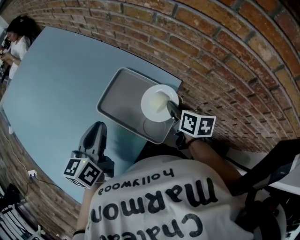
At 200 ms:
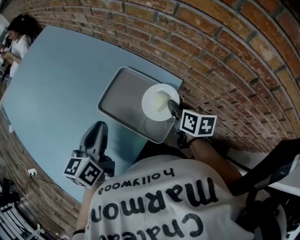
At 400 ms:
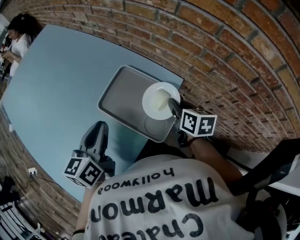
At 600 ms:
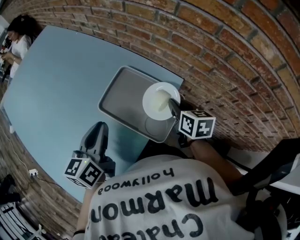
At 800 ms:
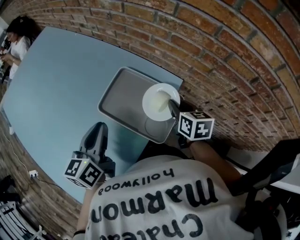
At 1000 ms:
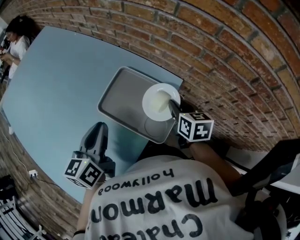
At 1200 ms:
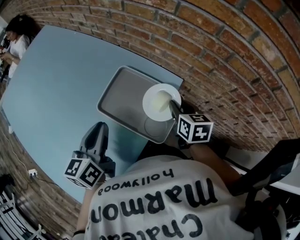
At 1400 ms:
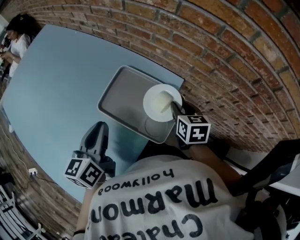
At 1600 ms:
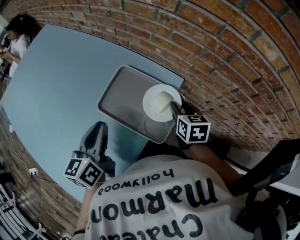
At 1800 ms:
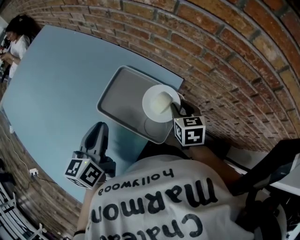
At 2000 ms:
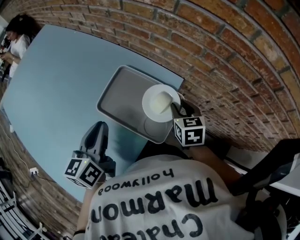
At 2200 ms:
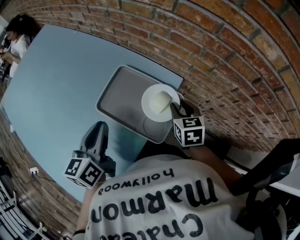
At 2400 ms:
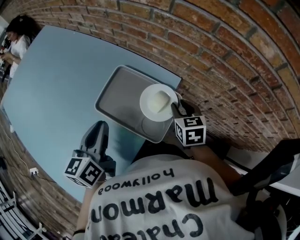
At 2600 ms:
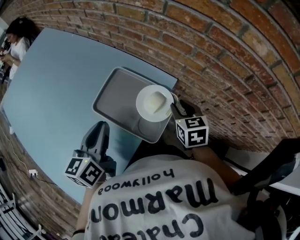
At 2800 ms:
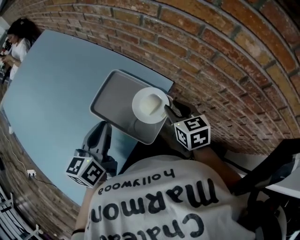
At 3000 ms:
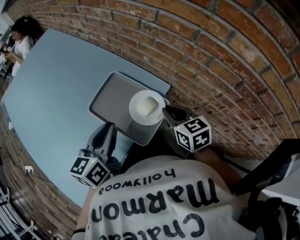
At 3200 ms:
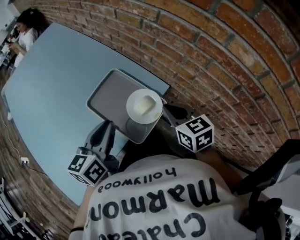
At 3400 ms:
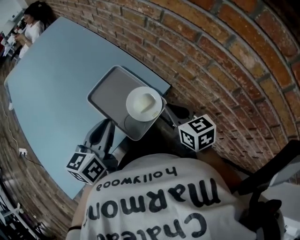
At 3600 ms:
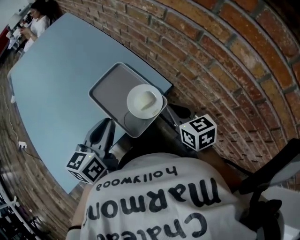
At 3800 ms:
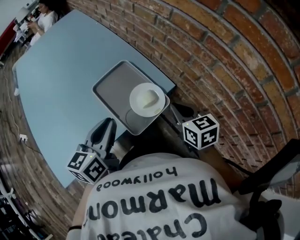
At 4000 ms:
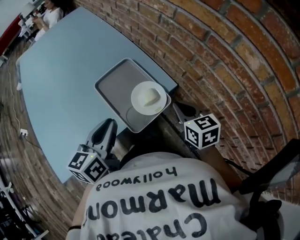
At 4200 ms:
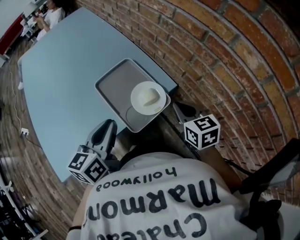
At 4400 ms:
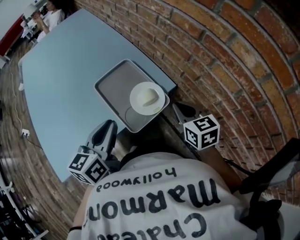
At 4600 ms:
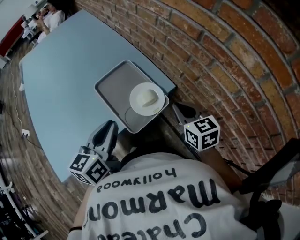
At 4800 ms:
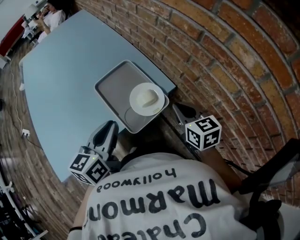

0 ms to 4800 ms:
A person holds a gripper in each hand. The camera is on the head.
0 ms to 1600 ms: There are only small adjustments of the grippers.
1600 ms to 3200 ms: The right gripper moves upward, about 10 cm, changes its angle by approximately 30 degrees, and closes its fingers. Meanwhile the left gripper shifts about 10 cm to the right.
3200 ms to 4800 ms: The left gripper travels backward by roughly 5 cm.

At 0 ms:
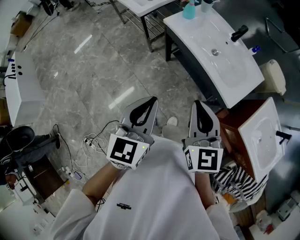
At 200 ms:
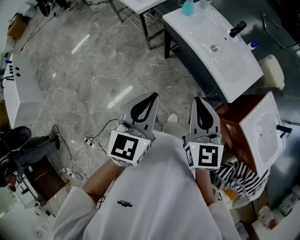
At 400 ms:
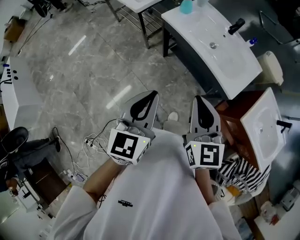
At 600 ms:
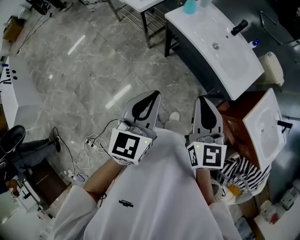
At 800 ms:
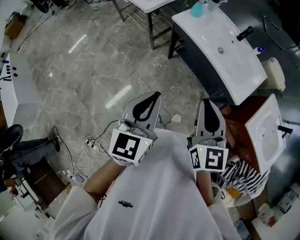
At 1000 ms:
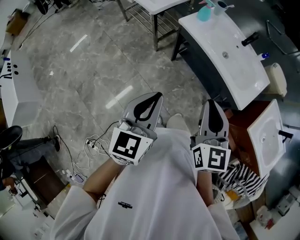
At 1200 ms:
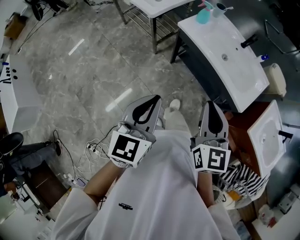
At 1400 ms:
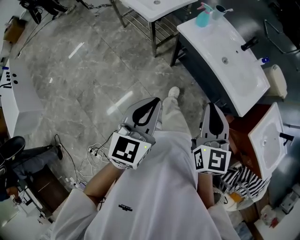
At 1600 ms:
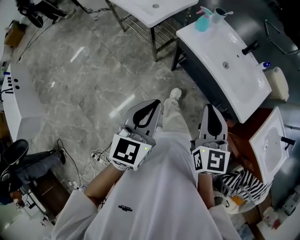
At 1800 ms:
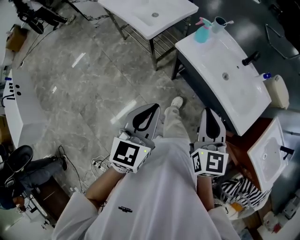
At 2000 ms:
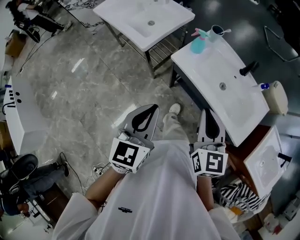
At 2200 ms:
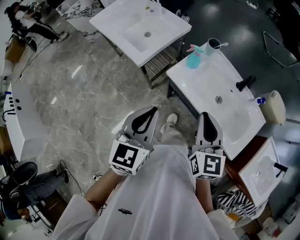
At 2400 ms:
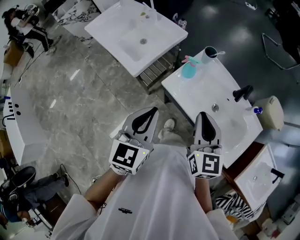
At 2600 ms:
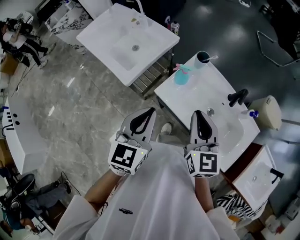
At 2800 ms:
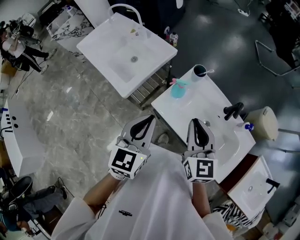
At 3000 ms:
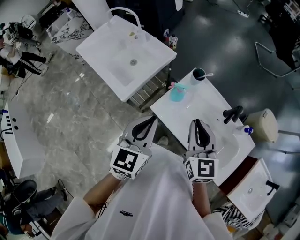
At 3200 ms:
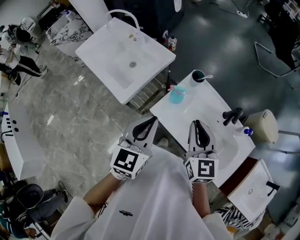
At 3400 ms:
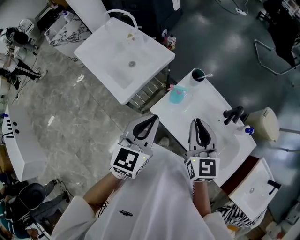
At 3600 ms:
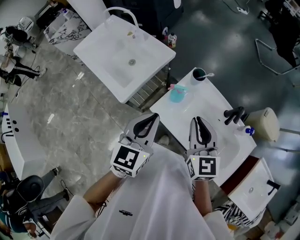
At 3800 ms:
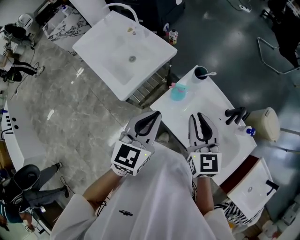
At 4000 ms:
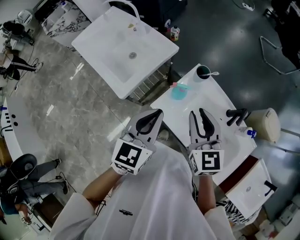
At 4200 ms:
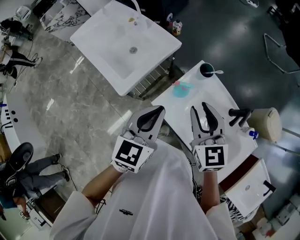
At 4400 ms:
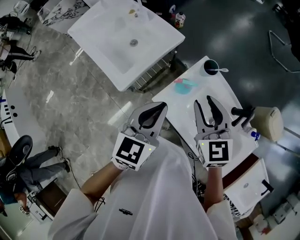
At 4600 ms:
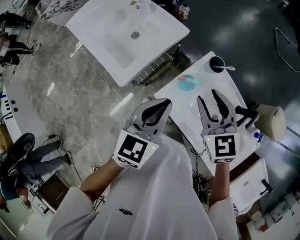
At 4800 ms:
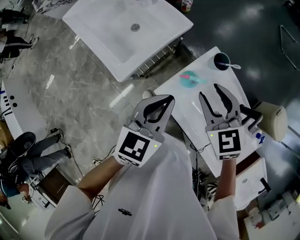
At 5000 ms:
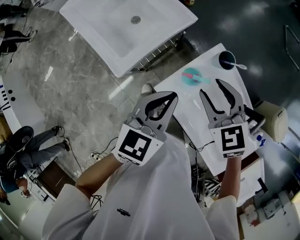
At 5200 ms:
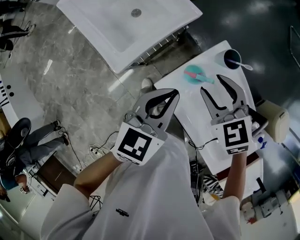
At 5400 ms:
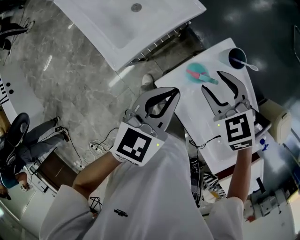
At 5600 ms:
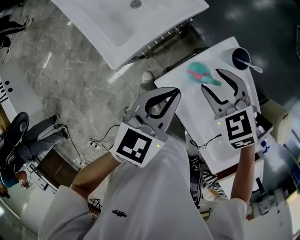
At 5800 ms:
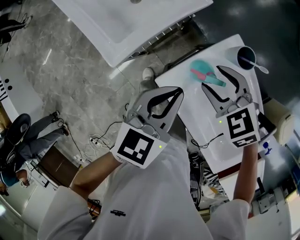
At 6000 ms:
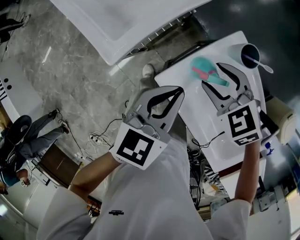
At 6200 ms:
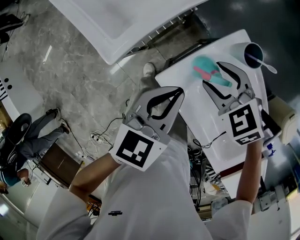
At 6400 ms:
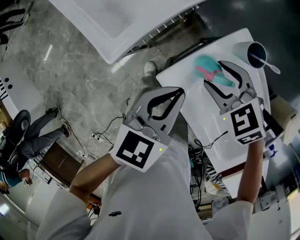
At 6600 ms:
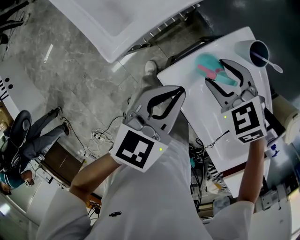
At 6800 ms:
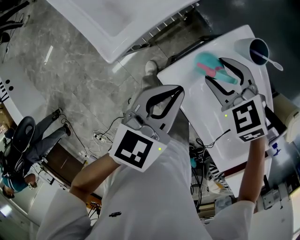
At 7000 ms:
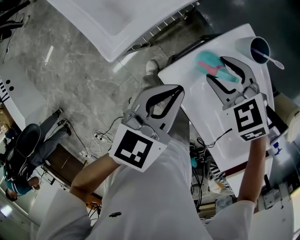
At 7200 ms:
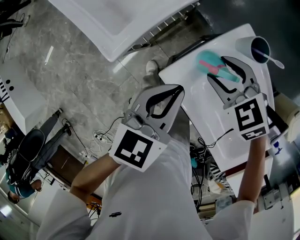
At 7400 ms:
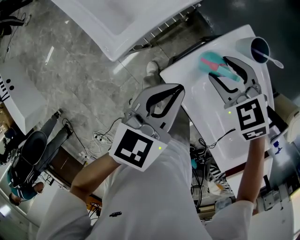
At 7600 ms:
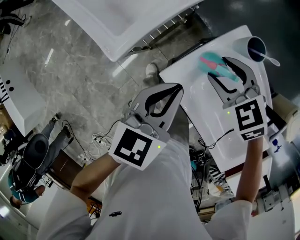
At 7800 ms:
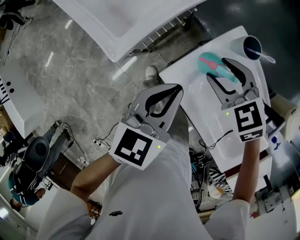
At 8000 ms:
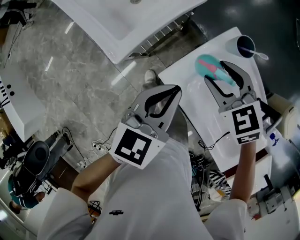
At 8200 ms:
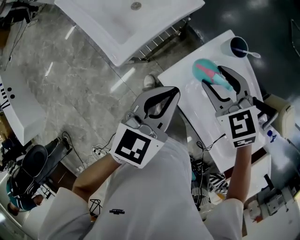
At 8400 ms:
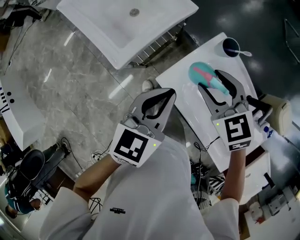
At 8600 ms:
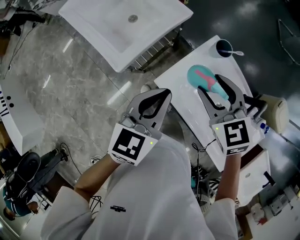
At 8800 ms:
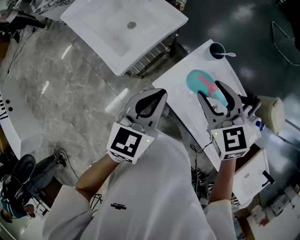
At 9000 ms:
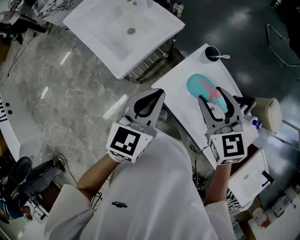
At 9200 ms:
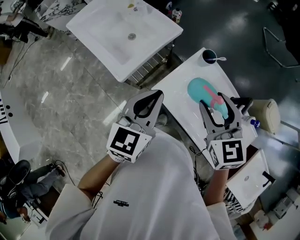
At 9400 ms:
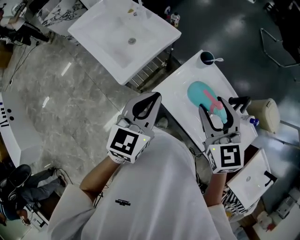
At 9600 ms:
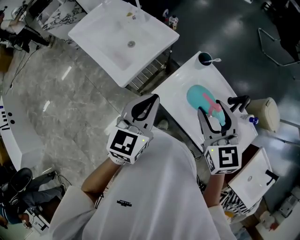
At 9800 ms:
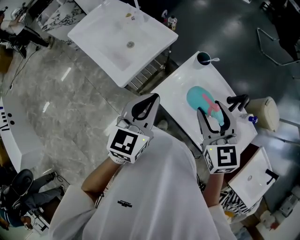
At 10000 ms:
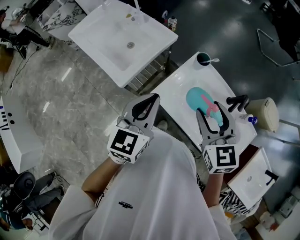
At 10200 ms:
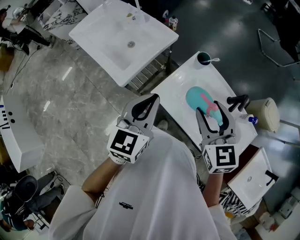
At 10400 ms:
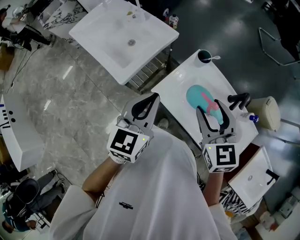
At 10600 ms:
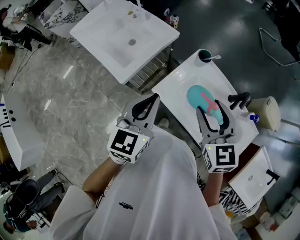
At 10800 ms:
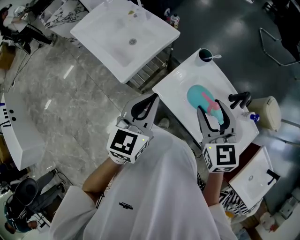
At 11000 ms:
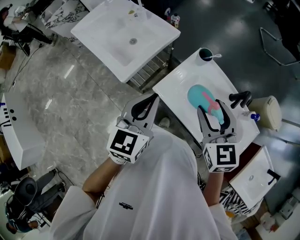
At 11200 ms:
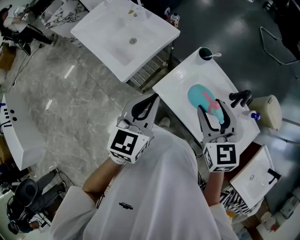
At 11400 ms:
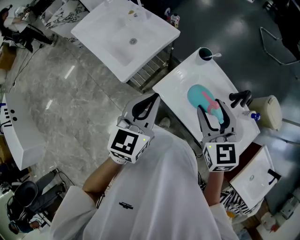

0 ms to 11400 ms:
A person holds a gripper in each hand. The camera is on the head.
0 ms to 1400 ms: The two grippers go some 10 cm to the left.
1400 ms to 2800 ms: Both grippers travel together forward, approximately 40 cm.
2800 ms to 4200 ms: Both grippers move forward, some 10 cm. The right gripper opens.
4200 ms to 5600 ms: The grippers both shift downward and forward by some 15 cm. The right gripper points its fingers roughly 30 degrees further downward, and opens up.
5600 ms to 7200 ms: The right gripper shifts about 5 cm downward, while the left gripper ends up some 5 cm from where it was.
7200 ms to 8600 ms: Both grippers move upward, approximately 15 cm. The right gripper swivels some 30 degrees.
8600 ms to 10000 ms: The right gripper moves backward and upward, about 15 cm, and changes its angle by roughly 20 degrees, while the left gripper travels upward and backward by approximately 10 cm.
10000 ms to 11400 ms: The grippers stay close to where they were, moving slightly.

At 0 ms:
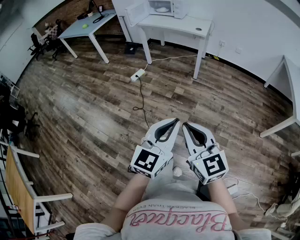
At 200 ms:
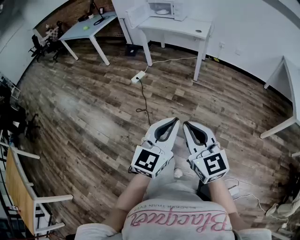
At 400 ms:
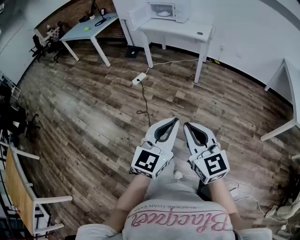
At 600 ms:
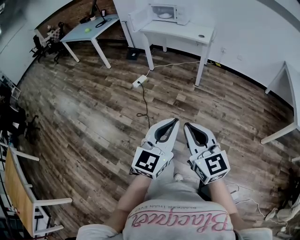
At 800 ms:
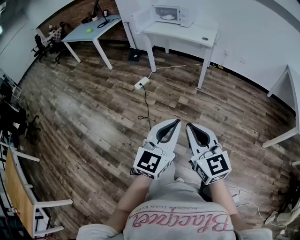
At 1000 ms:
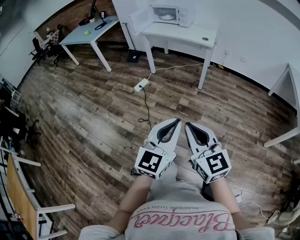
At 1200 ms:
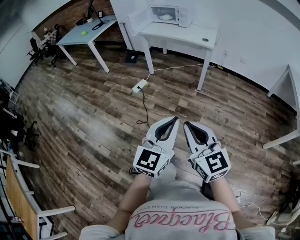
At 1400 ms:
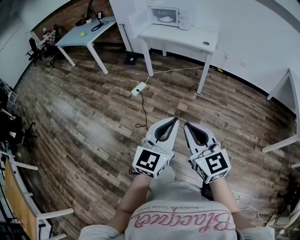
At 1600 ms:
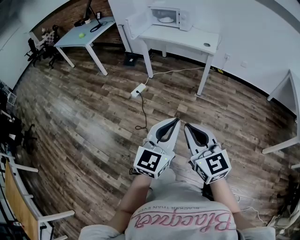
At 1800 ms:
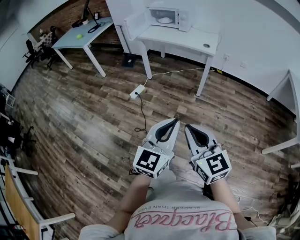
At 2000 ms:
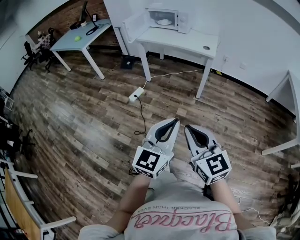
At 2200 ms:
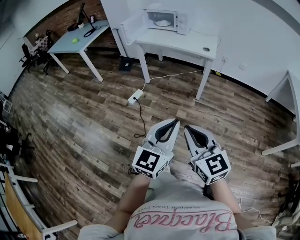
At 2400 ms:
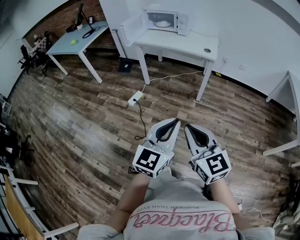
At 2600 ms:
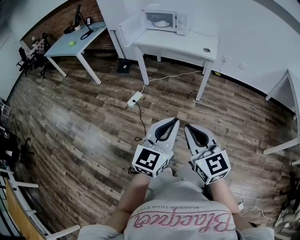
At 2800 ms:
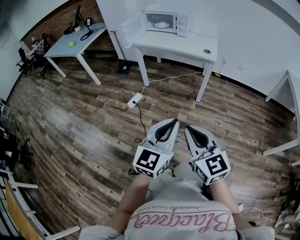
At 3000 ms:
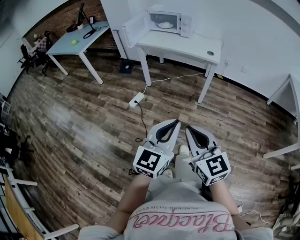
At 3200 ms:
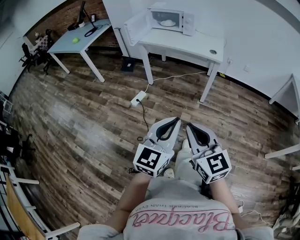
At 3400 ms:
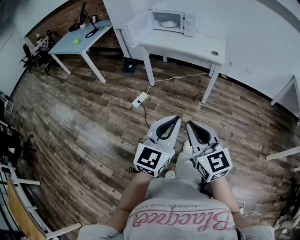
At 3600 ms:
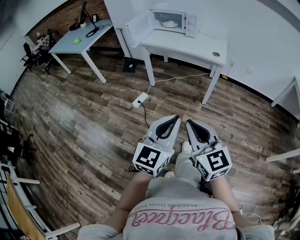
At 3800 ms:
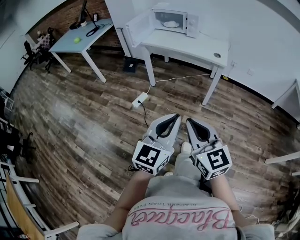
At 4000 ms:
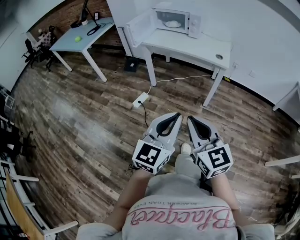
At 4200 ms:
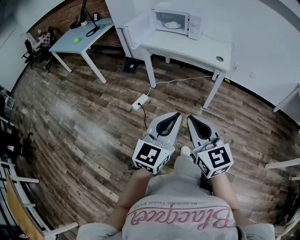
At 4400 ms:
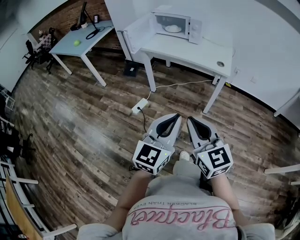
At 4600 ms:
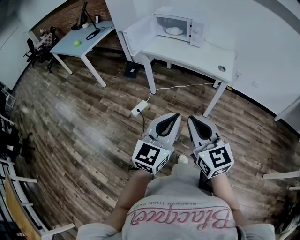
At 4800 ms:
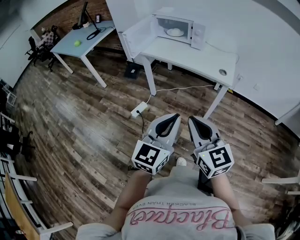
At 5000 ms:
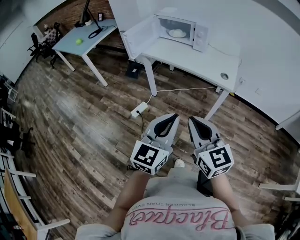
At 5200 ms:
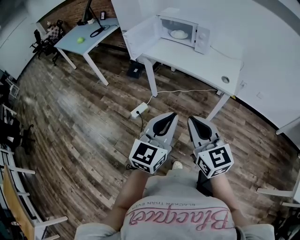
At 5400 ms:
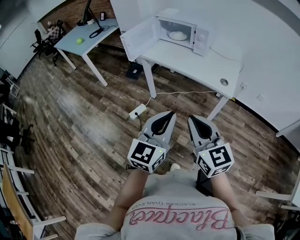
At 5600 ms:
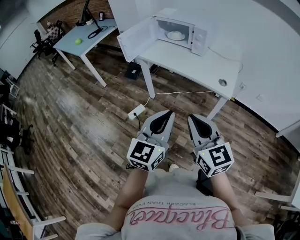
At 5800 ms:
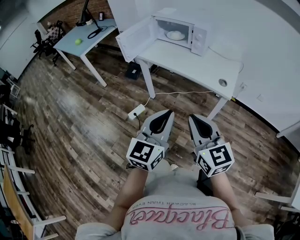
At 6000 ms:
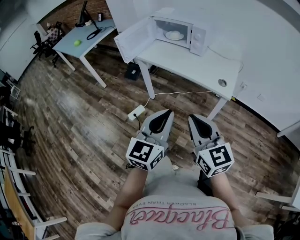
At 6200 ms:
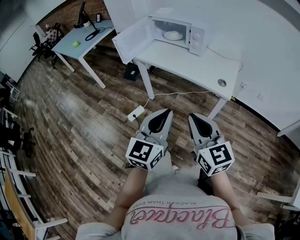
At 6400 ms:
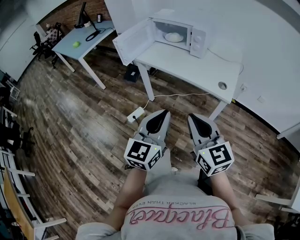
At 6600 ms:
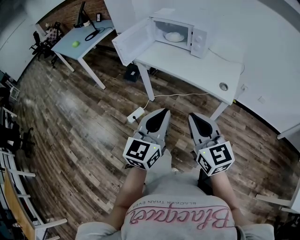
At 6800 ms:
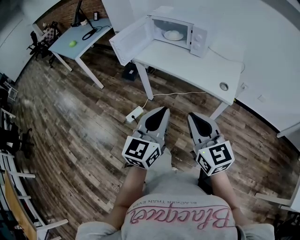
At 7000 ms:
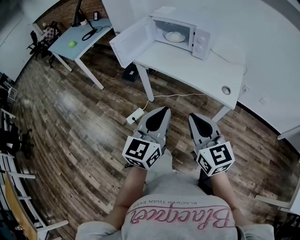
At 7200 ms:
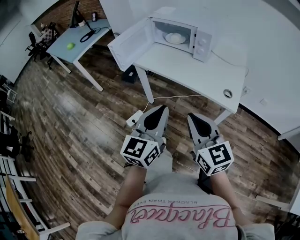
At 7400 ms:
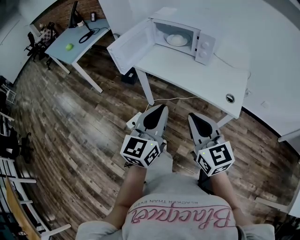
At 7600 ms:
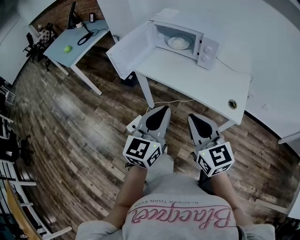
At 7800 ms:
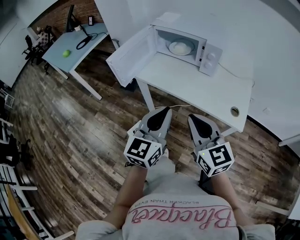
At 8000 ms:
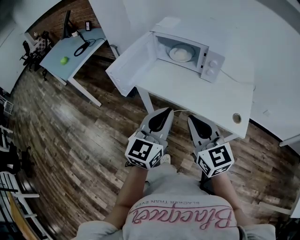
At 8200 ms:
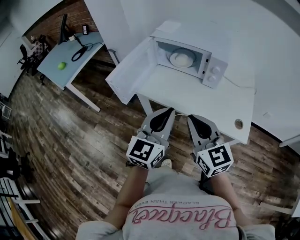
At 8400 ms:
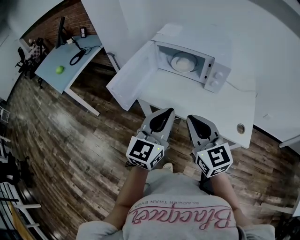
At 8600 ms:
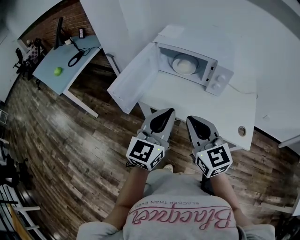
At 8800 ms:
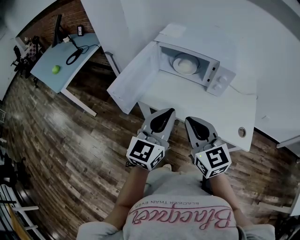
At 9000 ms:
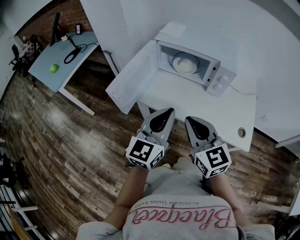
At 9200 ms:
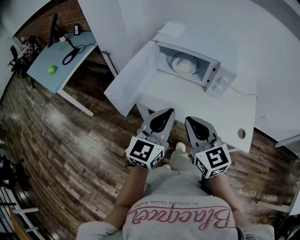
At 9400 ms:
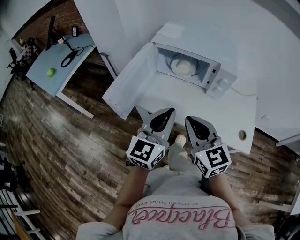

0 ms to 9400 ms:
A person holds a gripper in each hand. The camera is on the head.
0 ms to 1600 ms: Both grippers move forward, approximately 20 cm.
1600 ms to 3200 ms: Both grippers travel together forward and to the left, about 15 cm.
3200 ms to 4800 ms: Both grippers move forward, some 20 cm.
4800 ms to 6200 ms: The two grippers go approximately 15 cm forward and to the right.
6200 ms to 7800 ms: The two grippers go some 25 cm forward.
7800 ms to 9400 ms: The left gripper heads forward, covering some 20 cm. The right gripper goes roughly 20 cm forward and to the left.
